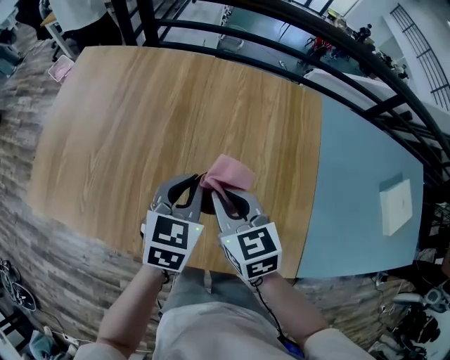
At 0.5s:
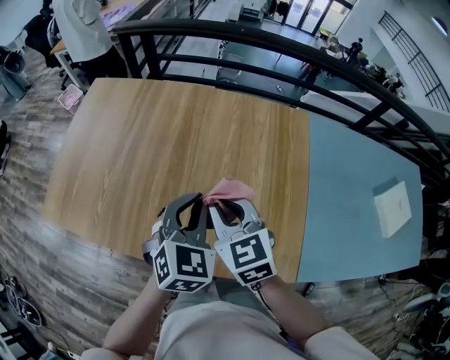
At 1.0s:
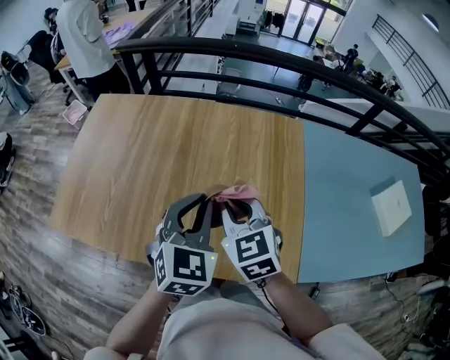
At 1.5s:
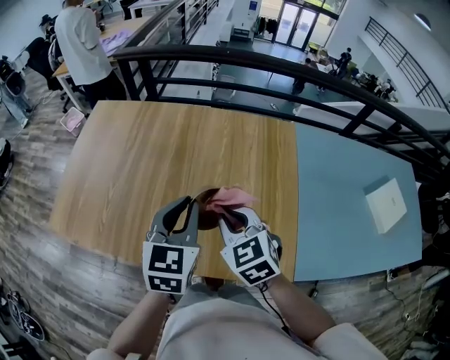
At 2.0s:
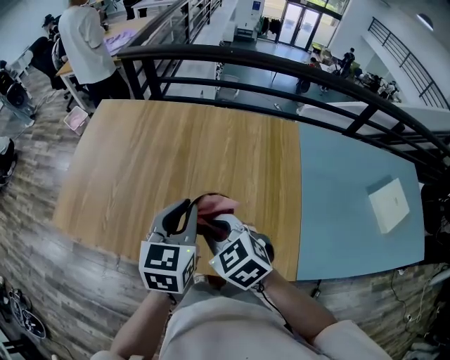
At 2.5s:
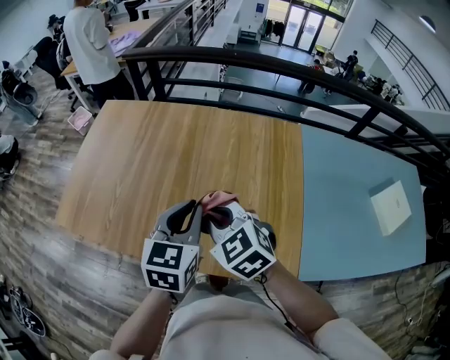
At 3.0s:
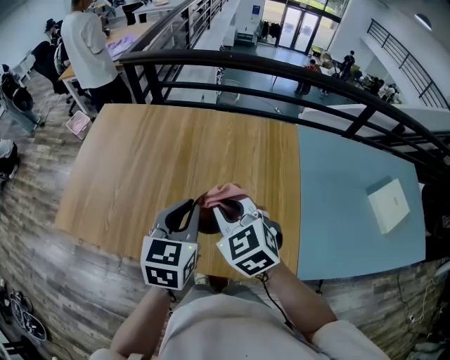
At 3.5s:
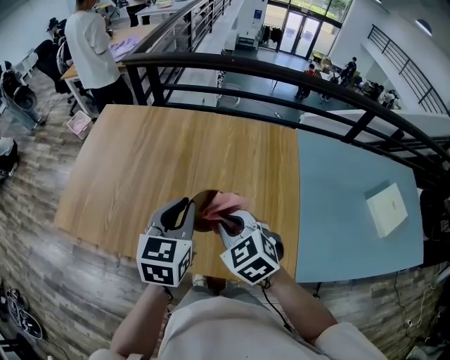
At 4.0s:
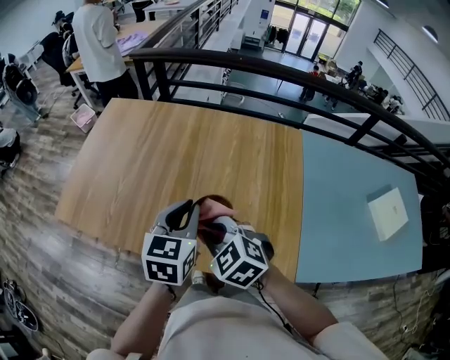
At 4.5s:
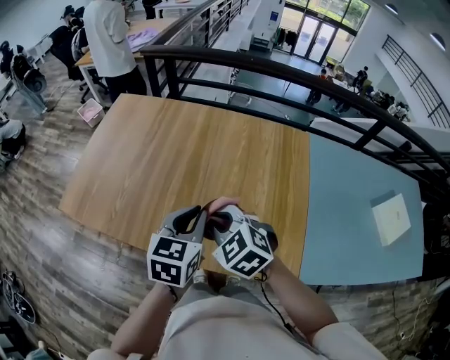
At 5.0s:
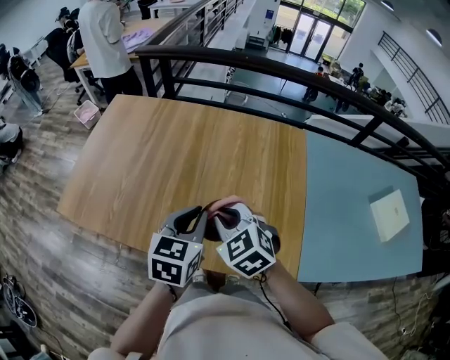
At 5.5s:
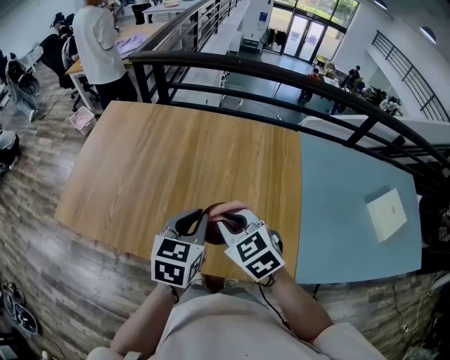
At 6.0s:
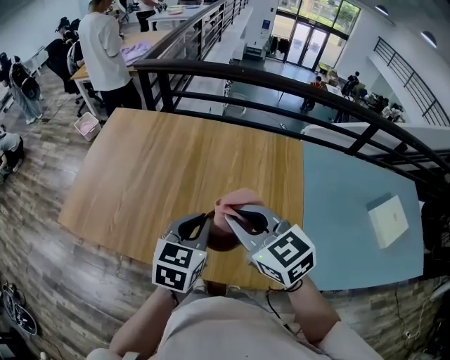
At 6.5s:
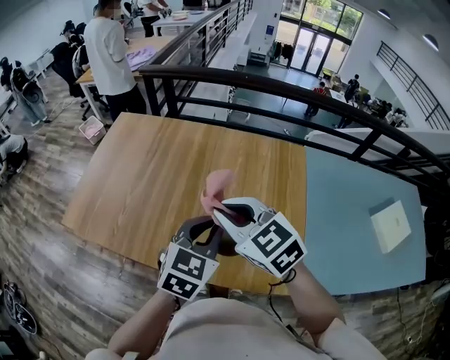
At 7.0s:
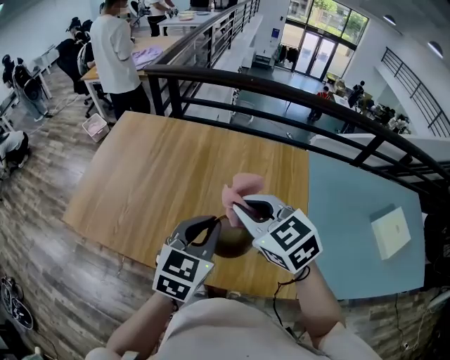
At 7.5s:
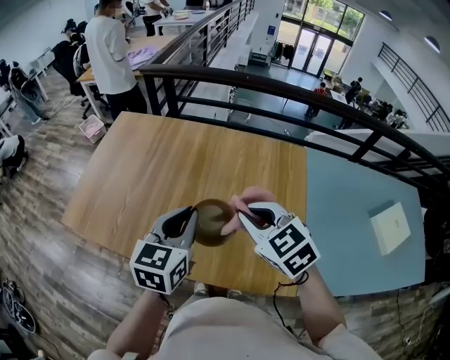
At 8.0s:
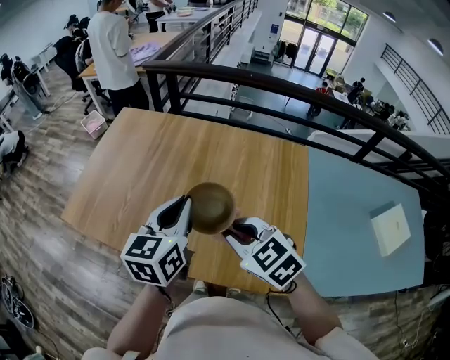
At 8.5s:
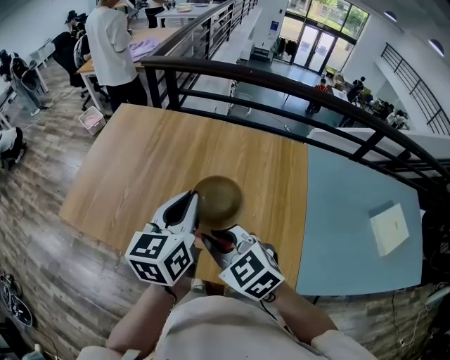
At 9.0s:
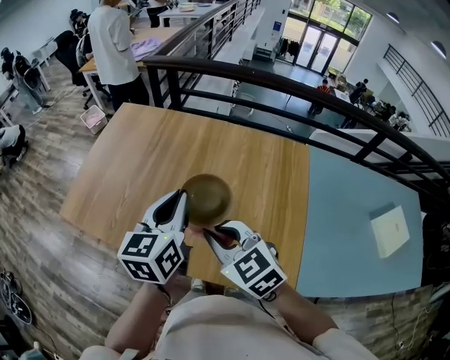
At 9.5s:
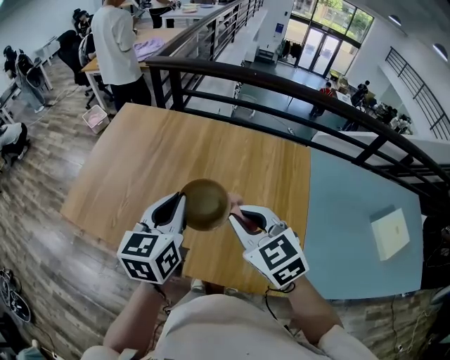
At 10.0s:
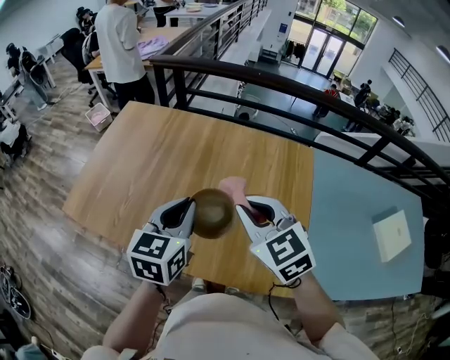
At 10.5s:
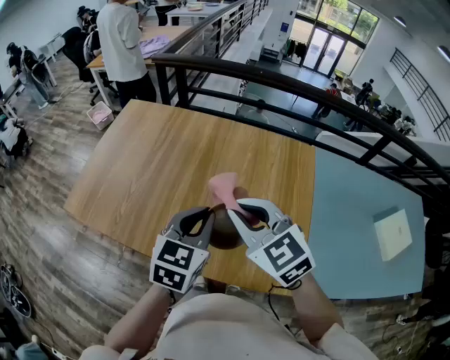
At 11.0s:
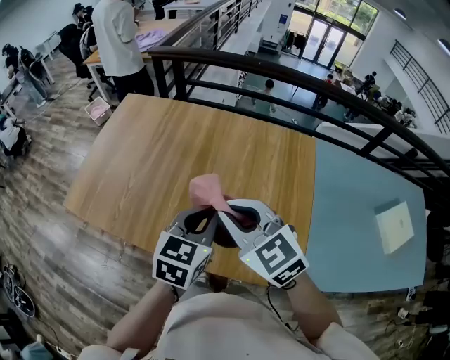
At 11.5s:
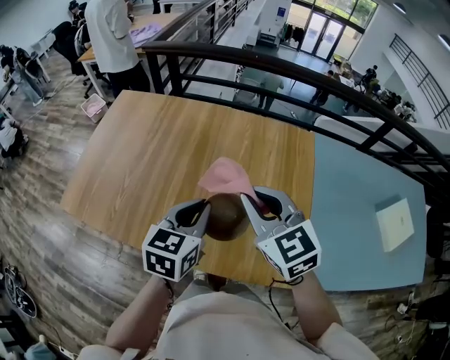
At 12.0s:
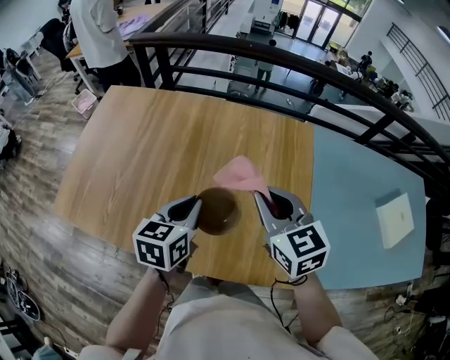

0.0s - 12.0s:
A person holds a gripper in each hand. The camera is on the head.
0.0s - 2.0s: The left gripper moves upward and backward, approximately 20 cm. Meanwhile the right gripper is displaced backward and upward by approximately 15 cm, and swivels some 30 degrees.
4.0s - 6.0s: The right gripper shifts some 10 cm upward and to the right, and turns by roughly 30 degrees.
6.0s - 8.0s: The left gripper moves upward and to the left, about 10 cm, and rotates roughly 20 degrees; the right gripper travels downward by about 5 cm.
8.0s - 10.0s: The right gripper shifts roughly 5 cm upward.
10.0s - 12.0s: The left gripper moves downward, some 10 cm. Meanwhile the right gripper is displaced to the right by roughly 10 cm.

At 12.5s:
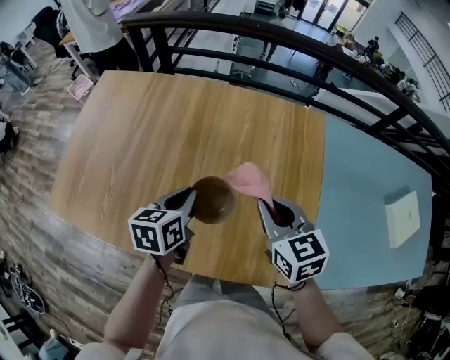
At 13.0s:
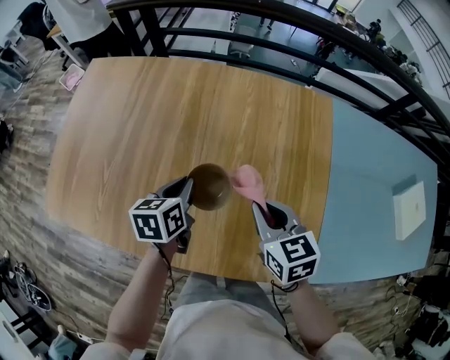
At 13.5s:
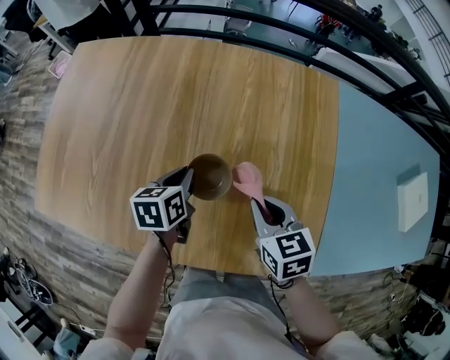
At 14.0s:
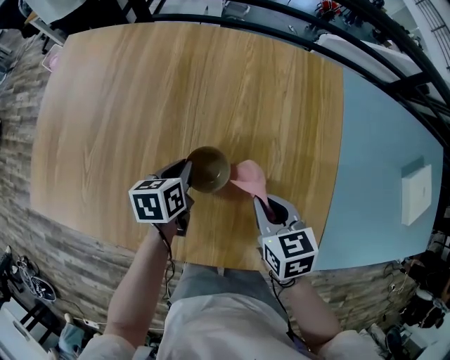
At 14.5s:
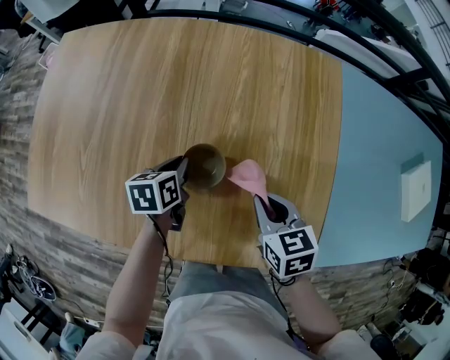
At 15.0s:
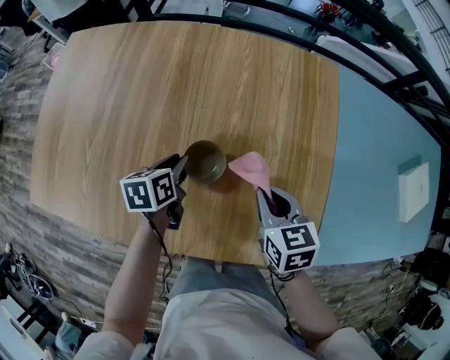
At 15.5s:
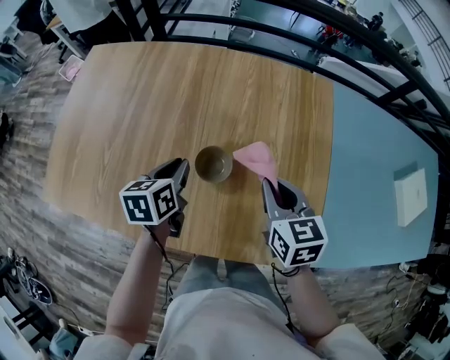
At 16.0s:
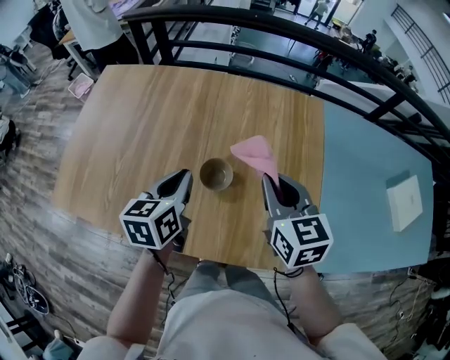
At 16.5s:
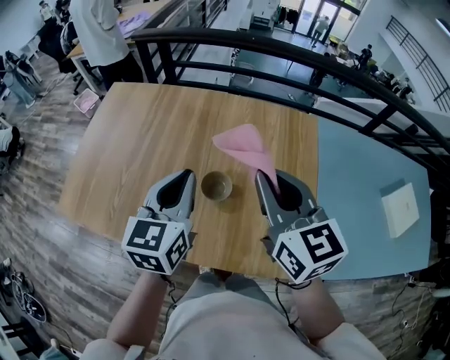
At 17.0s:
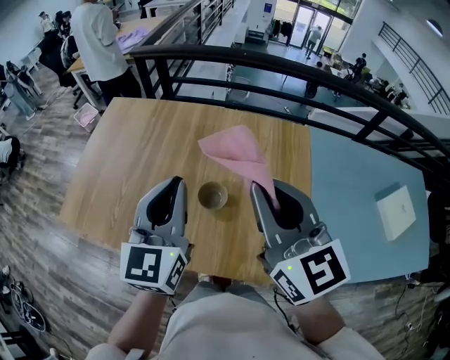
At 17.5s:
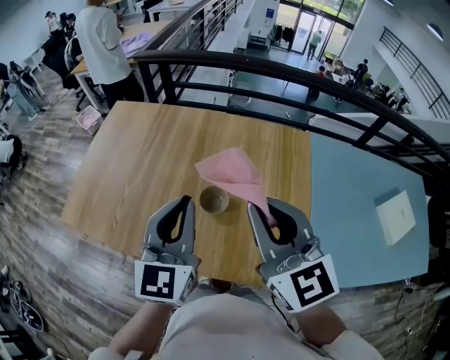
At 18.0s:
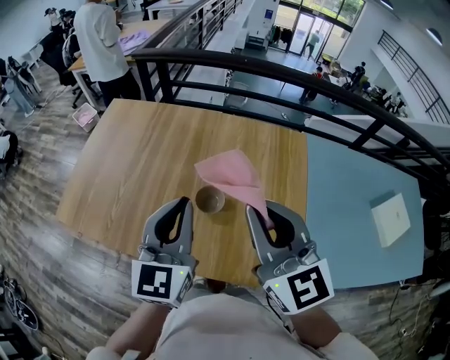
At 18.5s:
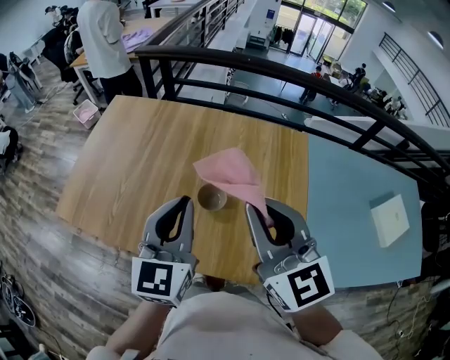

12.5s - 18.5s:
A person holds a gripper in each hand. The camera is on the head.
12.5s - 14.5s: Both grippers travel together downward, some 20 cm. The right gripper turns by about 20 degrees.
14.5s - 16.5s: The grippers both shift upward by about 35 cm. The right gripper tips its fingers upward by approximately 40 degrees. Meanwhile the left gripper tips its fingers upward by about 30 degrees.
16.5s - 18.5s: Both grippers travel together backward and upward, some 10 cm.

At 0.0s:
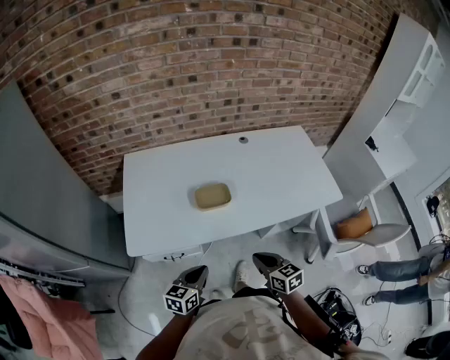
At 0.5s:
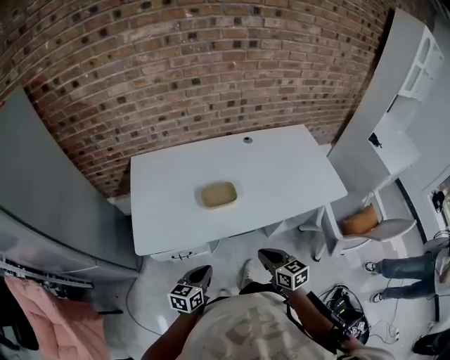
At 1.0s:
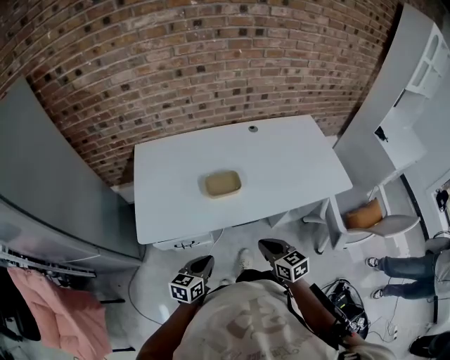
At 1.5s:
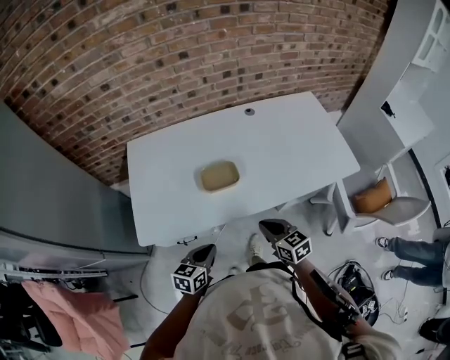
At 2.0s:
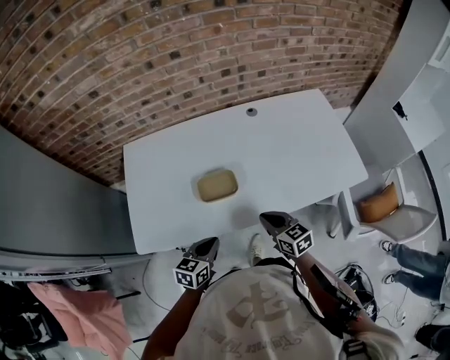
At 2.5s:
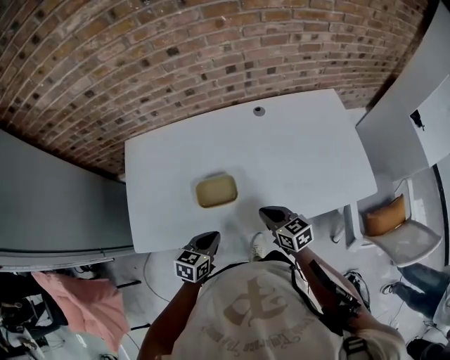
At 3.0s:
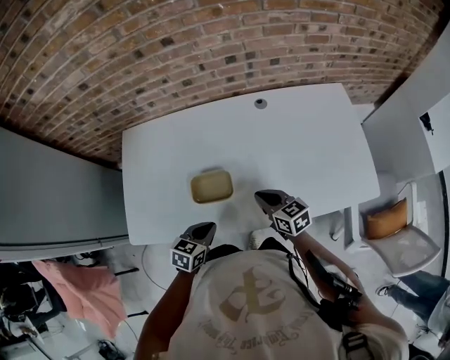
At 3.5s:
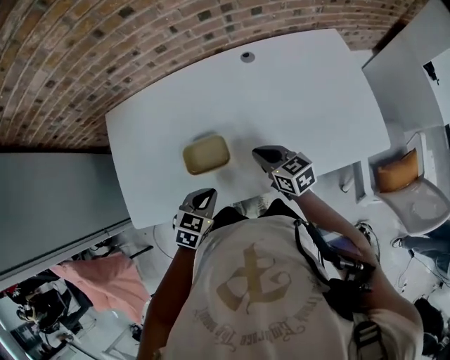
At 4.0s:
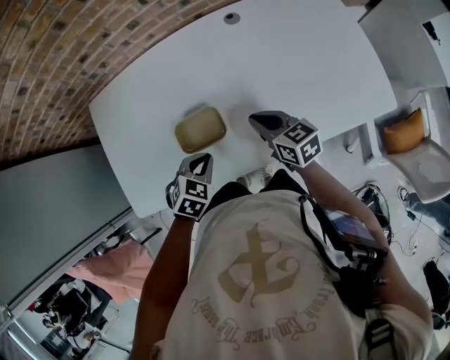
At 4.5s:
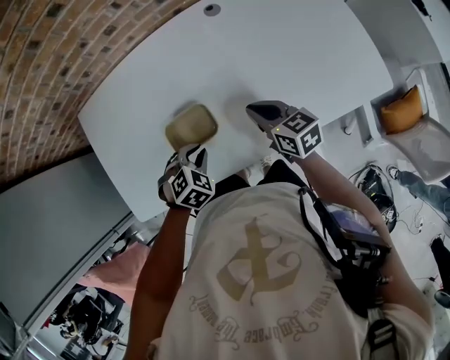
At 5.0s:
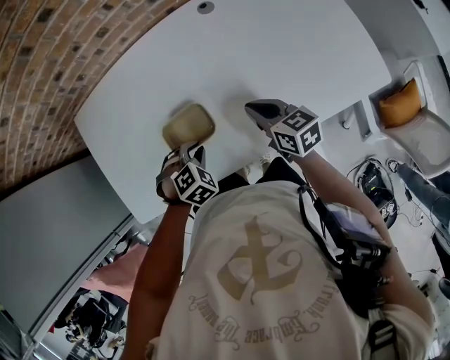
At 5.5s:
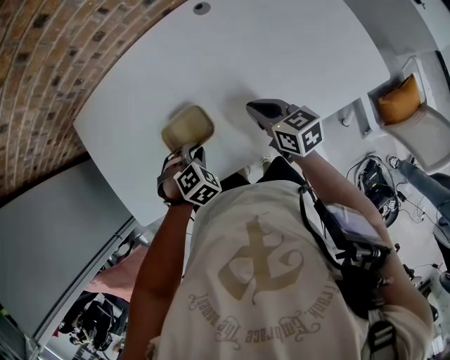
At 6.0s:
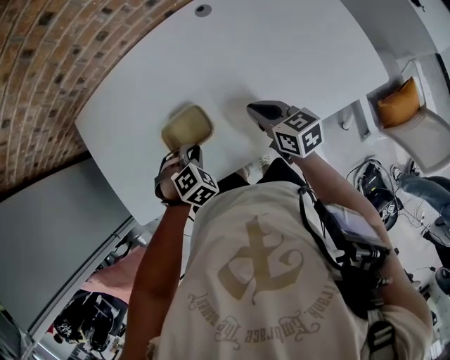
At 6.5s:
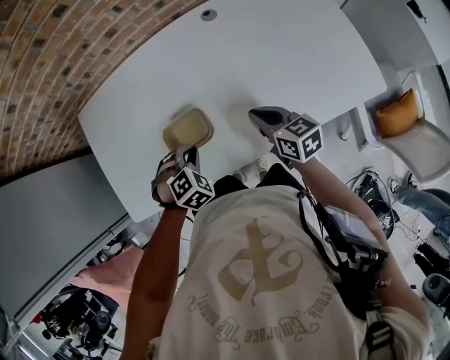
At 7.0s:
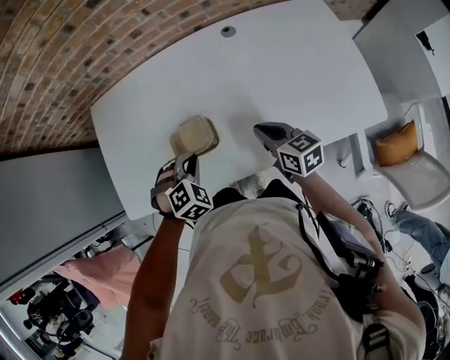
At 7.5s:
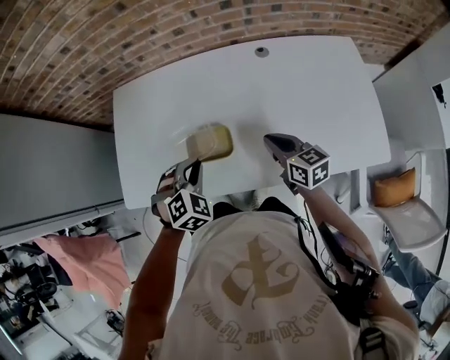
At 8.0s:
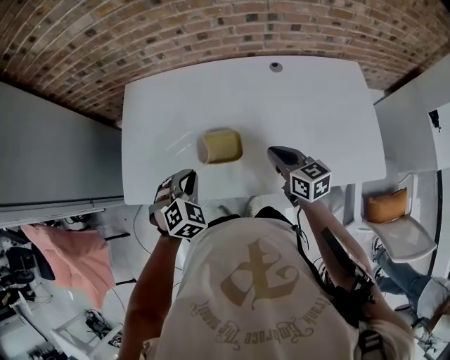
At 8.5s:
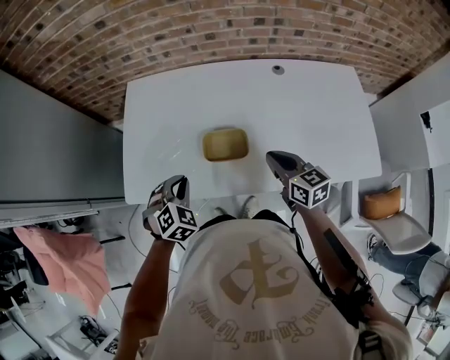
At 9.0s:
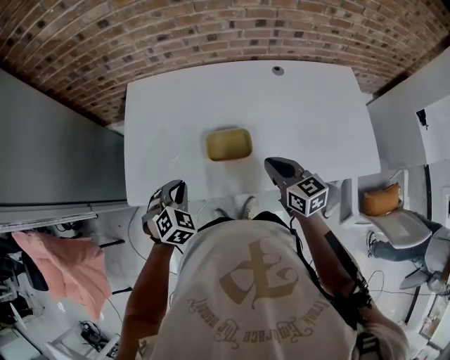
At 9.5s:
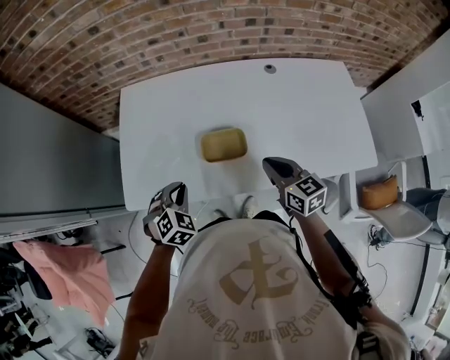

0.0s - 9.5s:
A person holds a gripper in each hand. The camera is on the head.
0.0s - 2.0s: Both grippers move forward, about 15 cm.
2.0s - 4.0s: The right gripper goes approximately 15 cm forward, while the left gripper goes roughly 15 cm forward and downward, and rotates about 40 degrees.
4.0s - 5.5s: The left gripper travels downward by roughly 5 cm, and turns by about 30 degrees.
5.5s - 7.5s: The left gripper travels upward by about 15 cm, and swivels about 30 degrees, while the right gripper moves upward, roughly 5 cm.
7.5s - 9.5s: The right gripper is displaced to the left by some 10 cm; the left gripper goes roughly 15 cm to the left.
